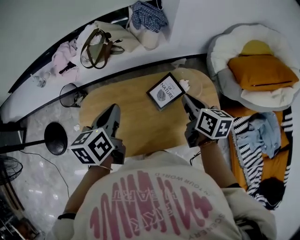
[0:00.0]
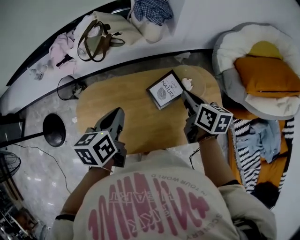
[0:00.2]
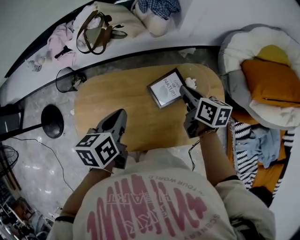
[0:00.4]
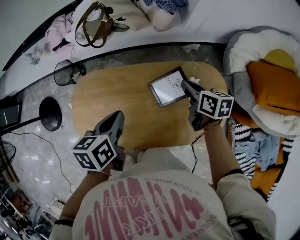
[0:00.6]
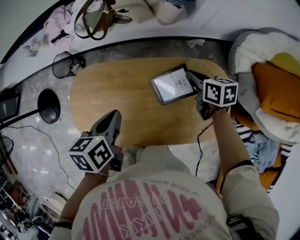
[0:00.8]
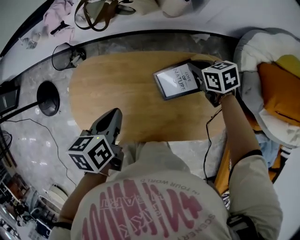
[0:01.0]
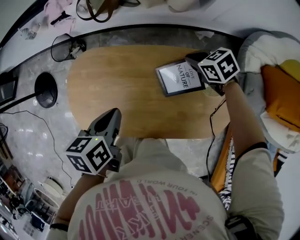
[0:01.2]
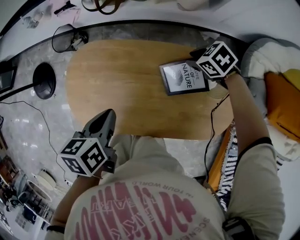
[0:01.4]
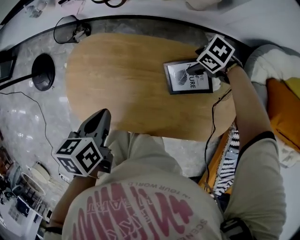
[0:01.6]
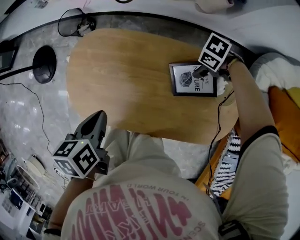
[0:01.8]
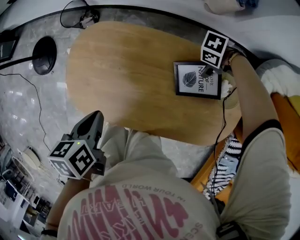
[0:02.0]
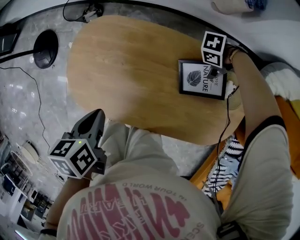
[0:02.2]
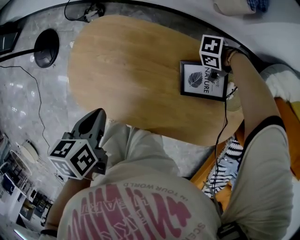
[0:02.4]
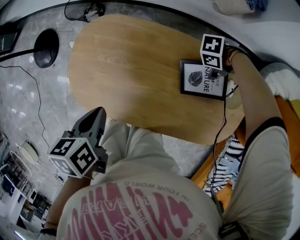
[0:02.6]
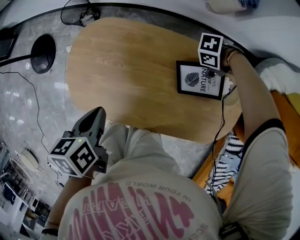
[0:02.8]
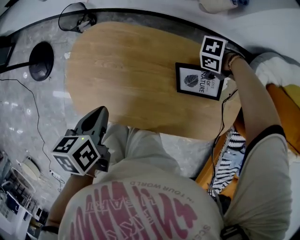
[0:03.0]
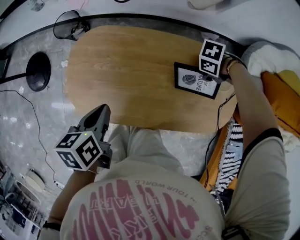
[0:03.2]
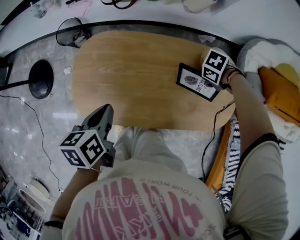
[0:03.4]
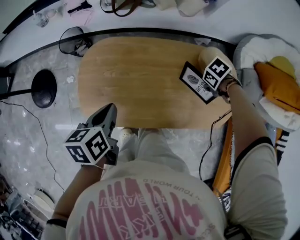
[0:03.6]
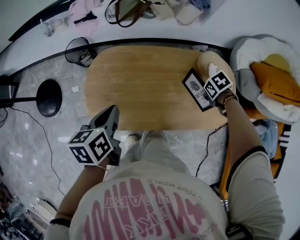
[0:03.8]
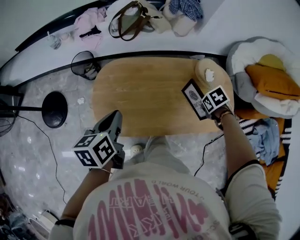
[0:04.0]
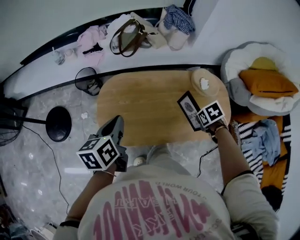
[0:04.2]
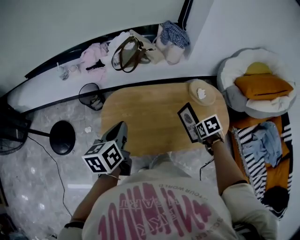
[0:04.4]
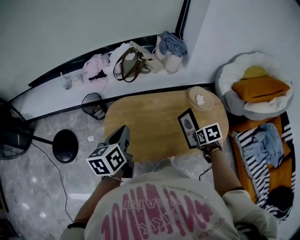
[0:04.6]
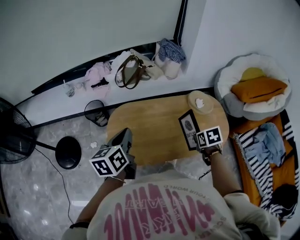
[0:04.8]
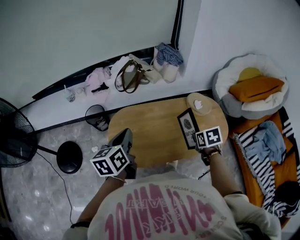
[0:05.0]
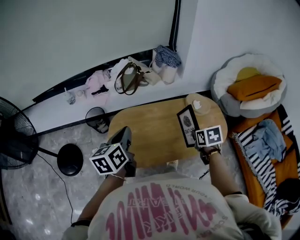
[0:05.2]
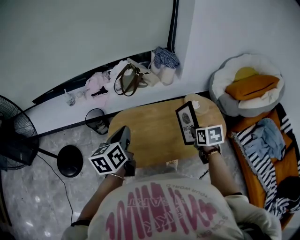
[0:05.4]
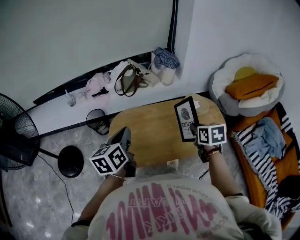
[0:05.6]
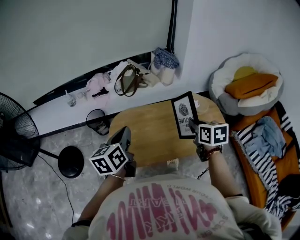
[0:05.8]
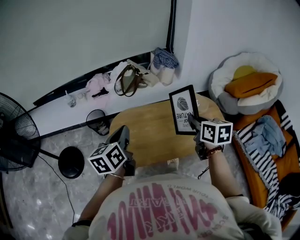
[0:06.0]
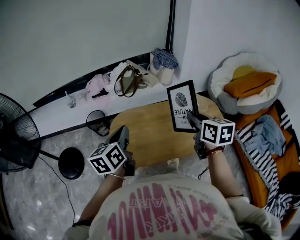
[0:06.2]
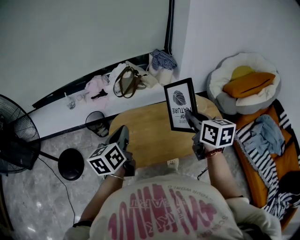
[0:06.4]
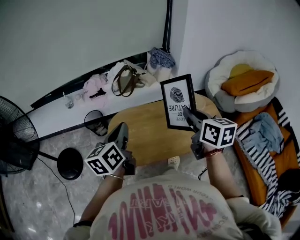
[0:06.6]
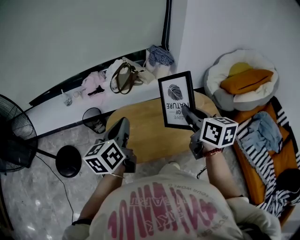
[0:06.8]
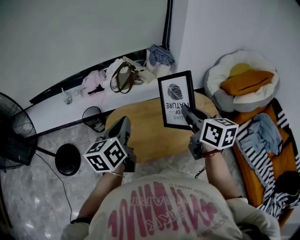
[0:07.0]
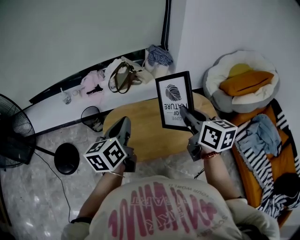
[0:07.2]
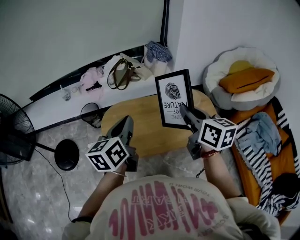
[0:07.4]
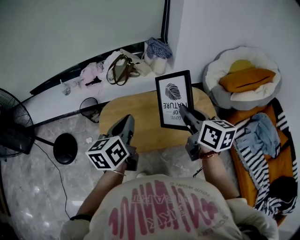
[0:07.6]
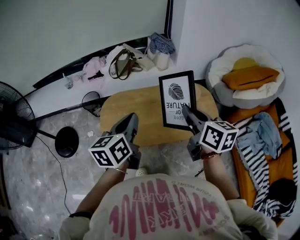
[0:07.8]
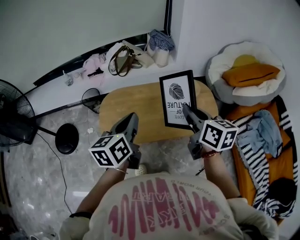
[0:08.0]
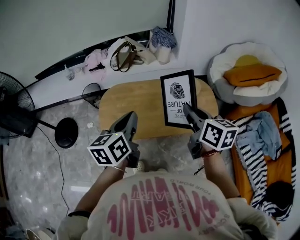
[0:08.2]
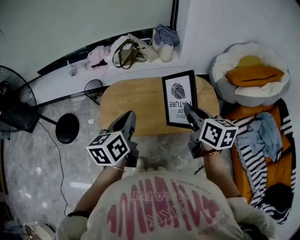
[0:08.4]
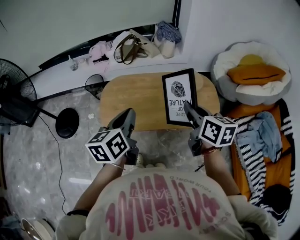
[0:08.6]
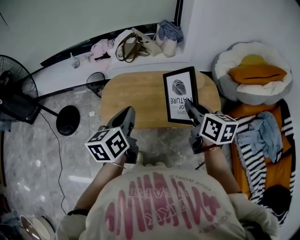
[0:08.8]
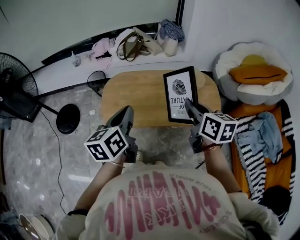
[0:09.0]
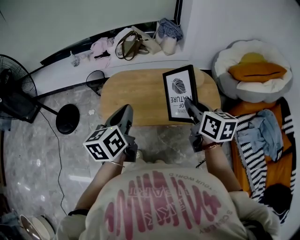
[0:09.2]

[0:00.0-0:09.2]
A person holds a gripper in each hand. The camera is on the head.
0:00.0 to 0:01.6: The right gripper shifts about 25 cm downward, points its fingers some 30 degrees further downward, and opens its fingers, while the left gripper travels downward by approximately 15 cm, and rotates roughly 30 degrees.
0:01.6 to 0:03.0: The left gripper shifts by about 5 cm; the right gripper shifts by approximately 5 cm, swivels some 30 degrees, and closes up.
0:03.0 to 0:04.6: The left gripper travels upward by roughly 20 cm, and changes its angle by roughly 30 degrees. Meanwhile the right gripper changes place by some 30 cm, and swivels roughly 90 degrees.
0:04.6 to 0:06.2: The right gripper heads upward, covering roughly 25 cm, and tilts its fingers roughly 50 degrees upward; the left gripper travels upward by roughly 5 cm.
0:06.2 to 0:07.6: The right gripper shifts by about 10 cm; the left gripper moves to the right, approximately 10 cm.
0:07.6 to 0:09.2: The right gripper shifts about 10 cm backward and downward. The left gripper is displaced backward by roughly 10 cm.

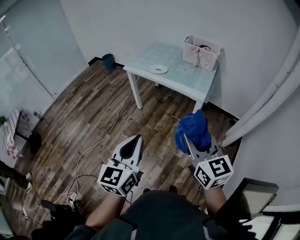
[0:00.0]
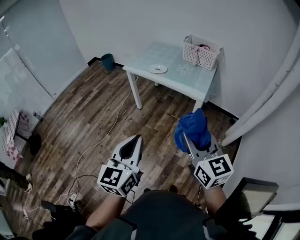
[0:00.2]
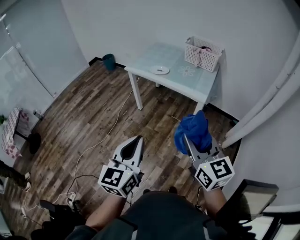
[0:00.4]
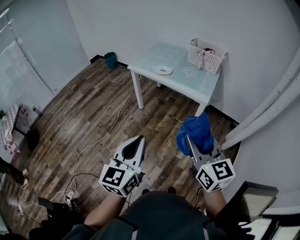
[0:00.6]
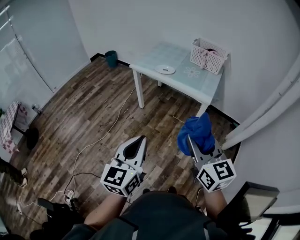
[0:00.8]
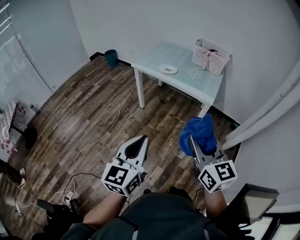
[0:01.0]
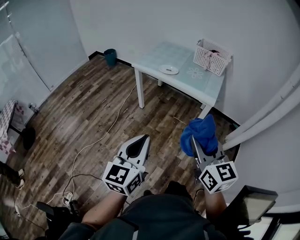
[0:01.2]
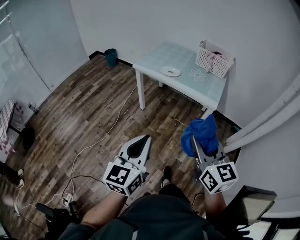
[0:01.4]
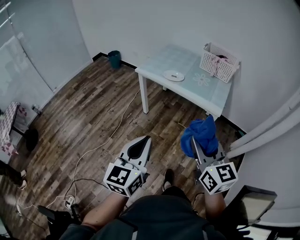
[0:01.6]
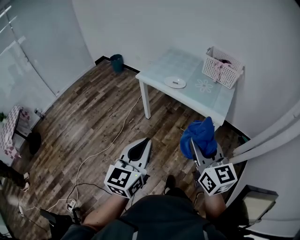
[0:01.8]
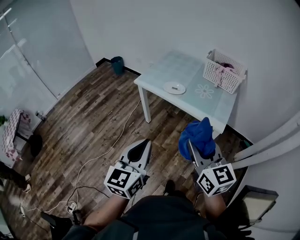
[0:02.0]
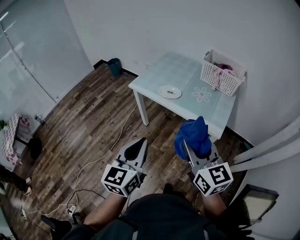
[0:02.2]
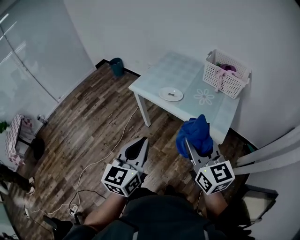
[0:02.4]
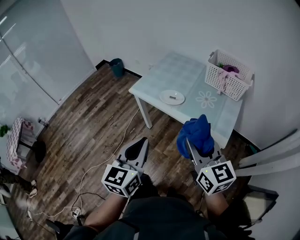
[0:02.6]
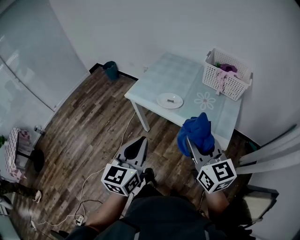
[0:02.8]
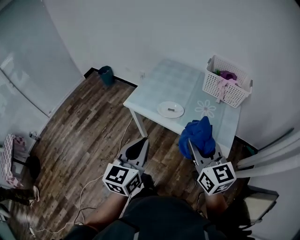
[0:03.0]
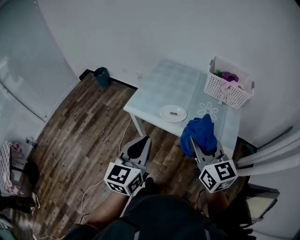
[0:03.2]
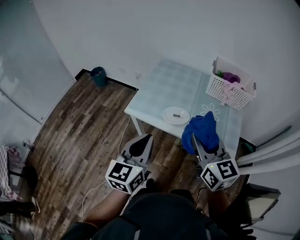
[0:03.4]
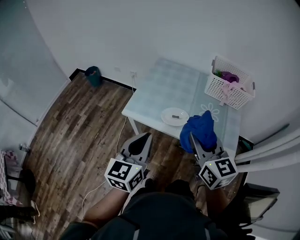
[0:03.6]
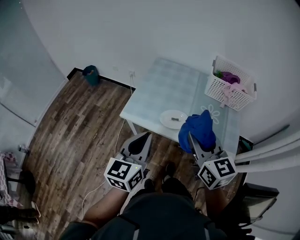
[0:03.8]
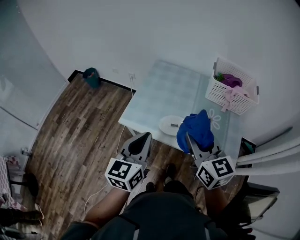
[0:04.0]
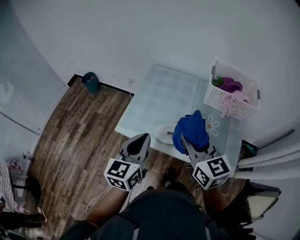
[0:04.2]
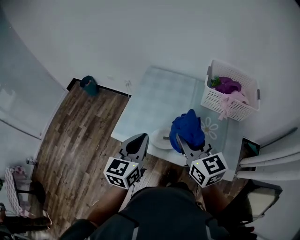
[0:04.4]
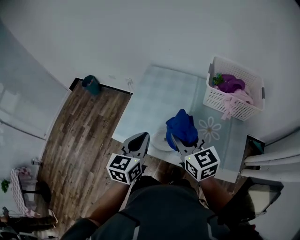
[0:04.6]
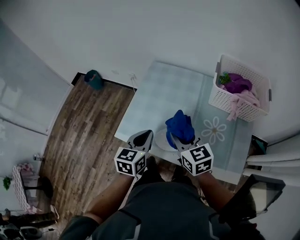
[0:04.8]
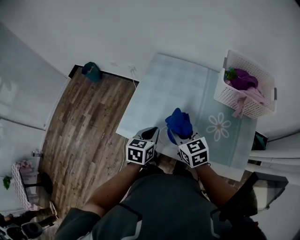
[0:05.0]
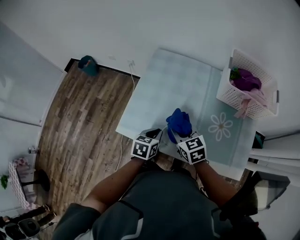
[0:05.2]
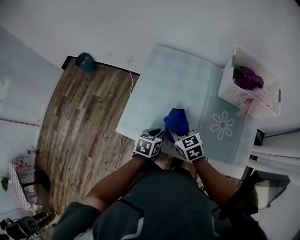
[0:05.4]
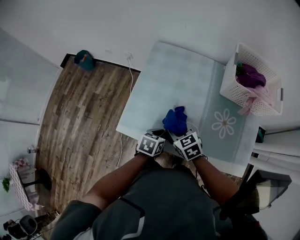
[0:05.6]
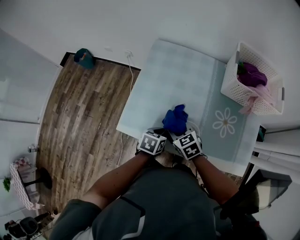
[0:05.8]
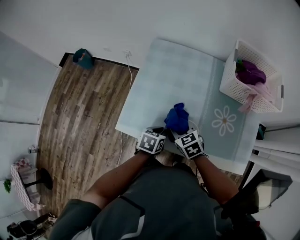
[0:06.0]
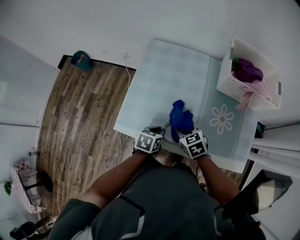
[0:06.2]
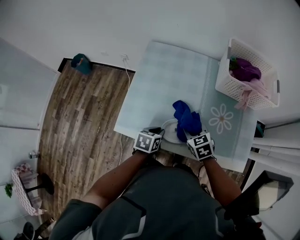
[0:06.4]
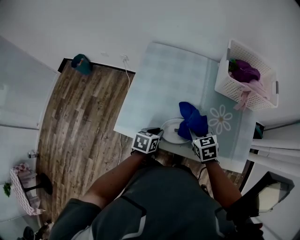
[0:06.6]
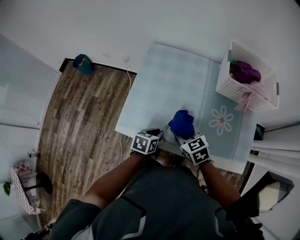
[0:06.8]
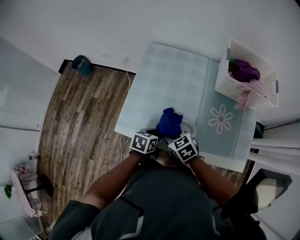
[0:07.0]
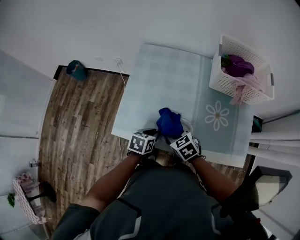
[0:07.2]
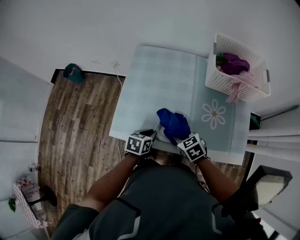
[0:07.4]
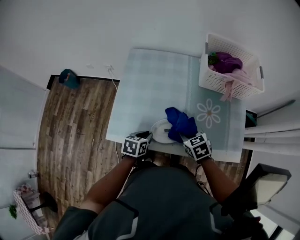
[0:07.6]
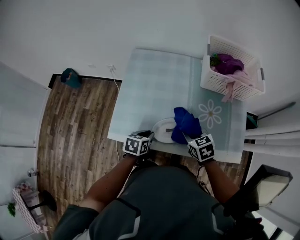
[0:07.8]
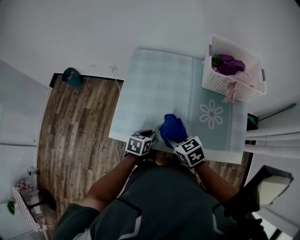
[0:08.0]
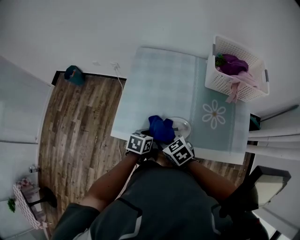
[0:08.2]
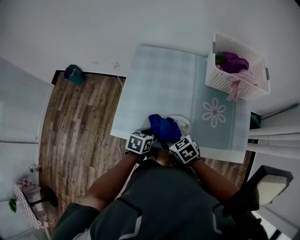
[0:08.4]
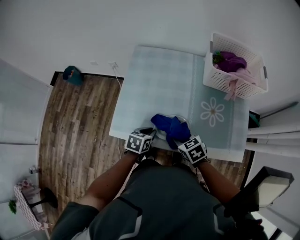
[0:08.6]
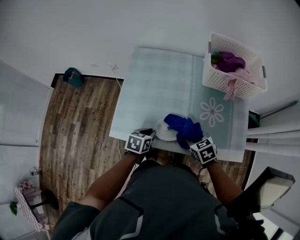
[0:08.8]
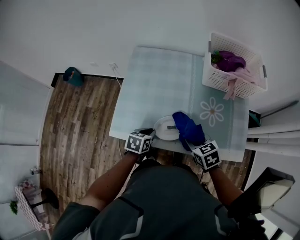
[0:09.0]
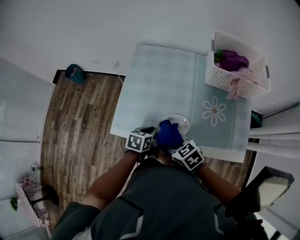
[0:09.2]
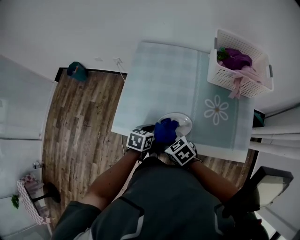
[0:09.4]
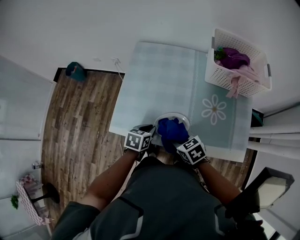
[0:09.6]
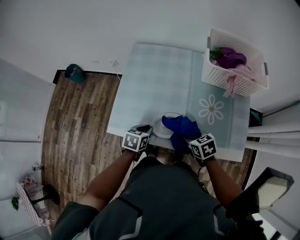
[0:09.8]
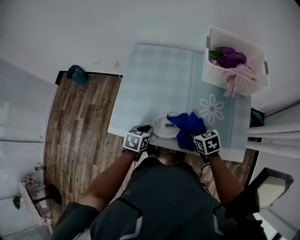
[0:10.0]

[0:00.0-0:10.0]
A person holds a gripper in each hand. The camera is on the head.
0:00.0 to 0:01.4: The right gripper goes about 10 cm to the left; the left gripper travels to the left and forward by roughly 10 cm.
0:01.4 to 0:02.8: The grippers both shift forward by roughly 35 cm.
0:02.8 to 0:04.2: The grippers both shift forward by approximately 25 cm.
0:04.2 to 0:05.8: The right gripper is displaced downward and forward by about 30 cm, and angles its fingers downward, by roughly 30 degrees, while the left gripper is displaced downward by some 30 cm, and tips its fingers downward by roughly 40 degrees.
0:05.8 to 0:07.2: The right gripper goes to the right and returns, some 10 cm each way.
0:07.2 to 0:08.6: The right gripper swings left and right, roughly 15 cm each way, with 2 reversals.
0:08.6 to 0:10.0: The right gripper swings left and right, roughly 20 cm each way, with 2 reversals.

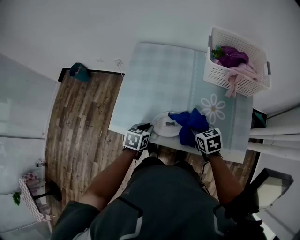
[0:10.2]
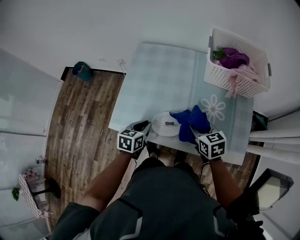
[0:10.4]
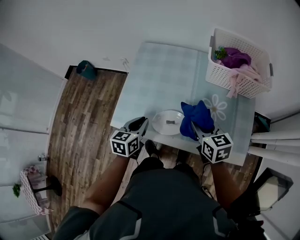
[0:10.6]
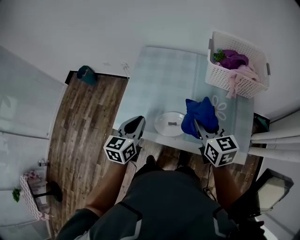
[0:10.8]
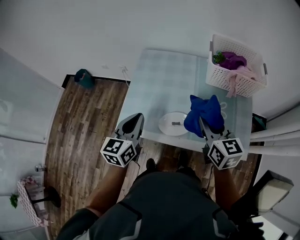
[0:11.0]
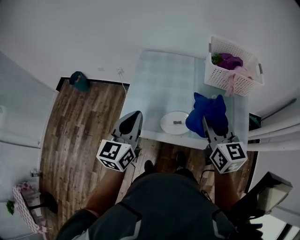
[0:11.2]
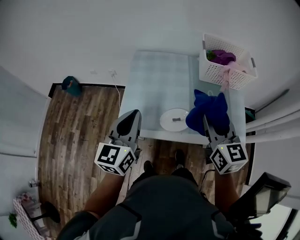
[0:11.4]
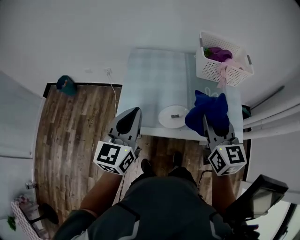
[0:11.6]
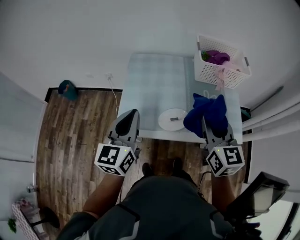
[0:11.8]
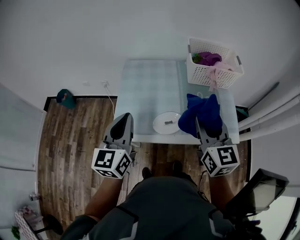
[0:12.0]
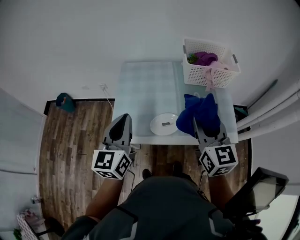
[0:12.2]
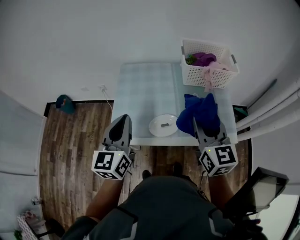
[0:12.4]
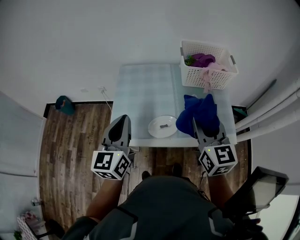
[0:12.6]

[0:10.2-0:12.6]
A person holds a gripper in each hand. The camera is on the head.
0:10.2 to 0:11.4: The grippers both shift upward by approximately 30 cm. The right gripper tilts its fingers roughly 40 degrees upward, while the left gripper points its fingers roughly 50 degrees further upward.
0:11.4 to 0:12.6: The grippers make only small movements.

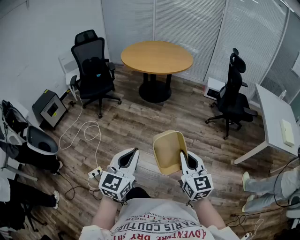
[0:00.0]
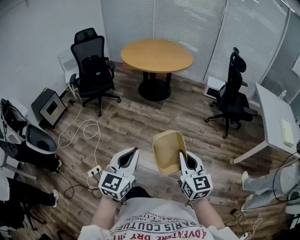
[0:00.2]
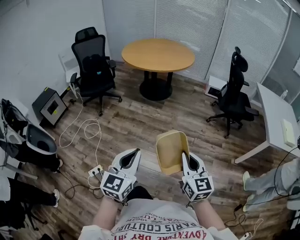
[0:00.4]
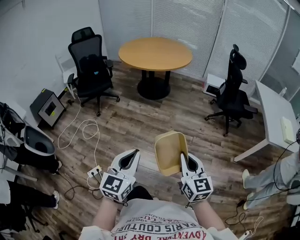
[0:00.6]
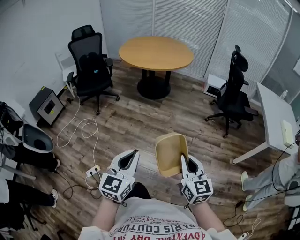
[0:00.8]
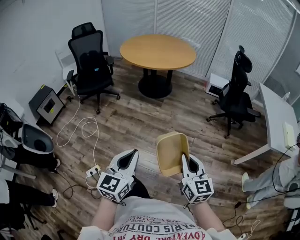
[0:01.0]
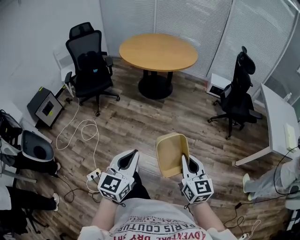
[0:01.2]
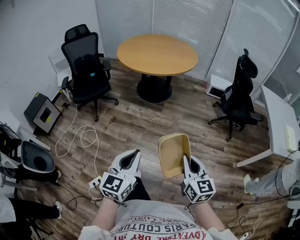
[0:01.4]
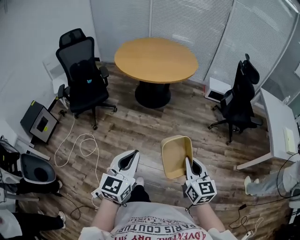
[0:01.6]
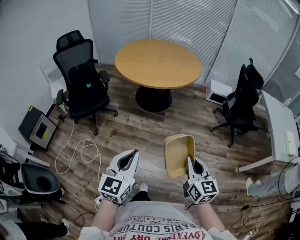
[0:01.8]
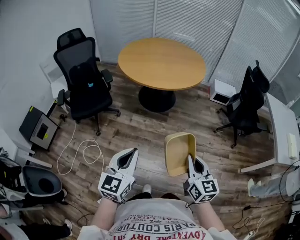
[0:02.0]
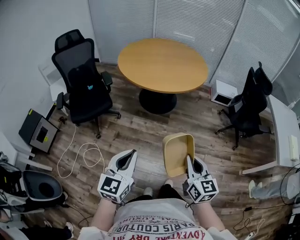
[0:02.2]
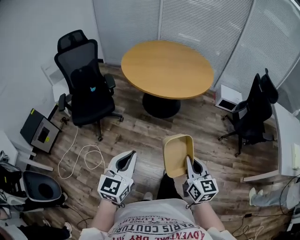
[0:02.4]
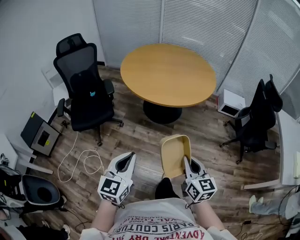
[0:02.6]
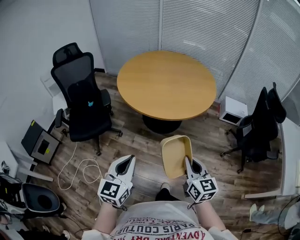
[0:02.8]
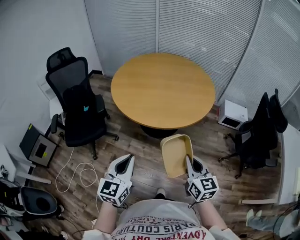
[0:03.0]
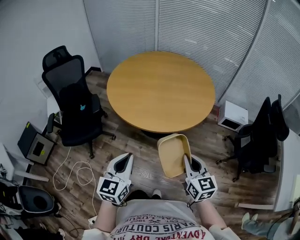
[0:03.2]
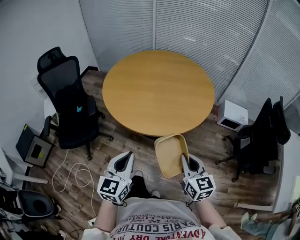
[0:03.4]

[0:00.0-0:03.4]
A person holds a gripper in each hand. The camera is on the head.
0:00.0 to 0:01.6: Both grippers move forward and to the left, roughly 25 cm.
0:01.6 to 0:03.4: Both grippers are carried forward, approximately 50 cm.
